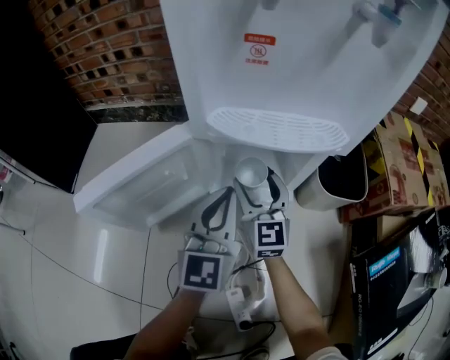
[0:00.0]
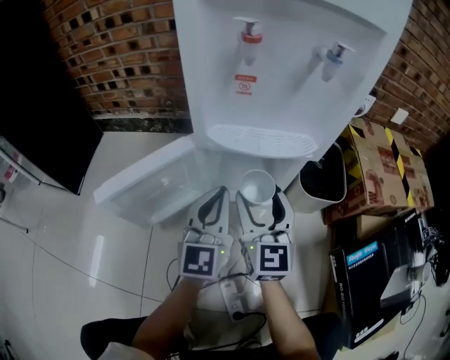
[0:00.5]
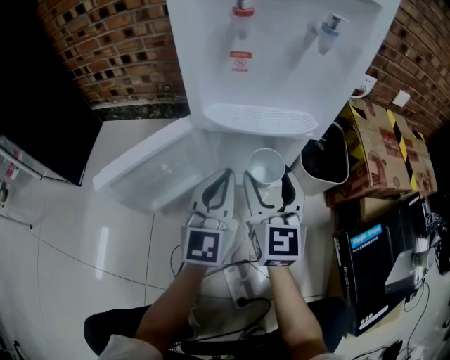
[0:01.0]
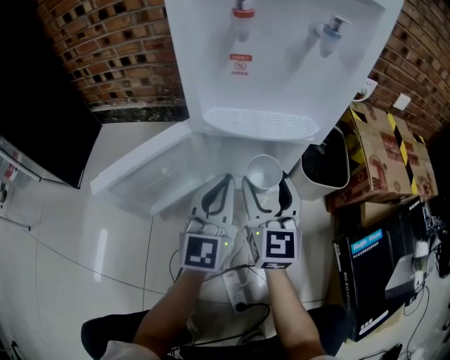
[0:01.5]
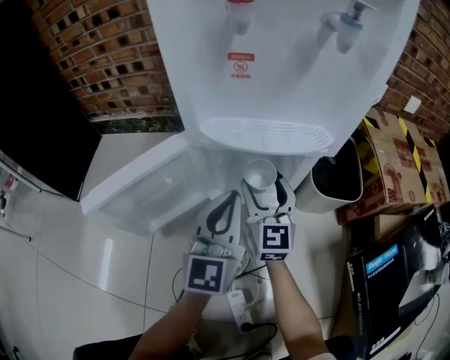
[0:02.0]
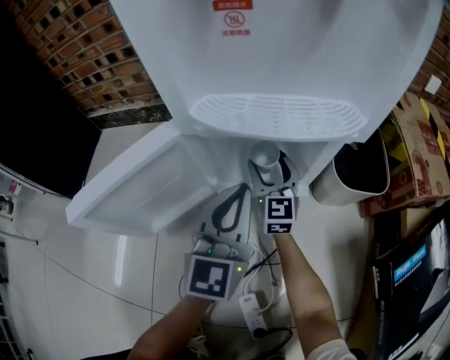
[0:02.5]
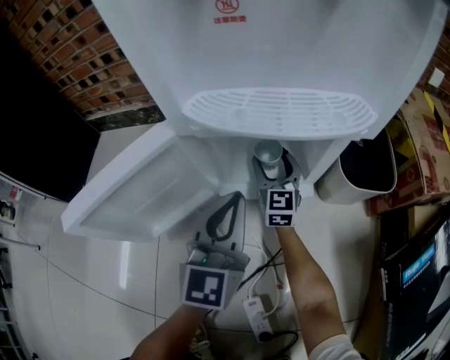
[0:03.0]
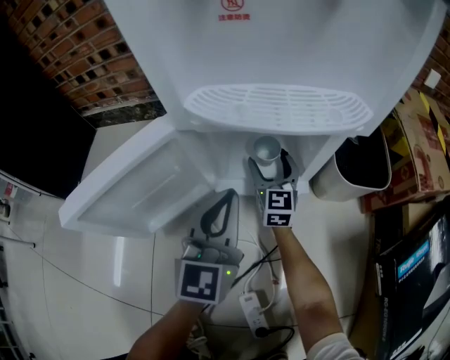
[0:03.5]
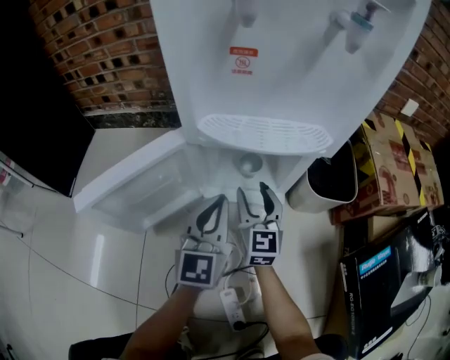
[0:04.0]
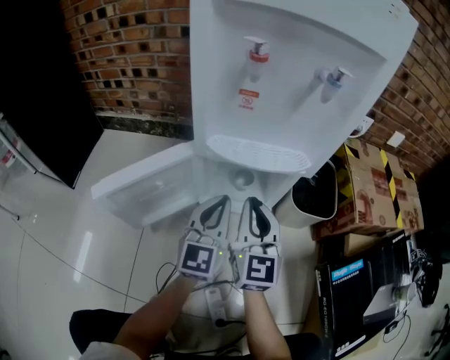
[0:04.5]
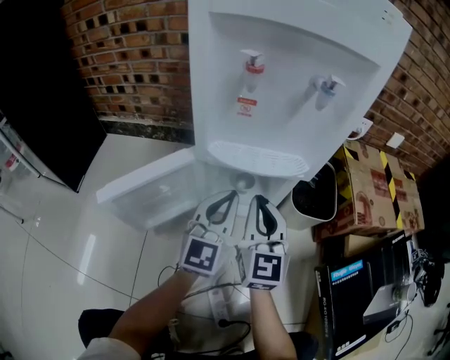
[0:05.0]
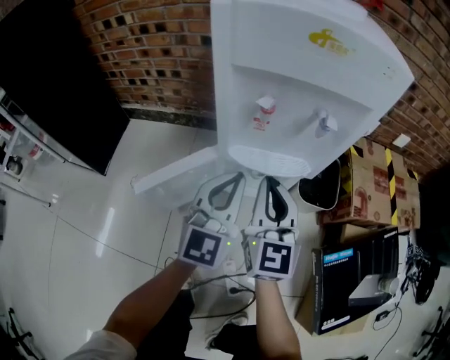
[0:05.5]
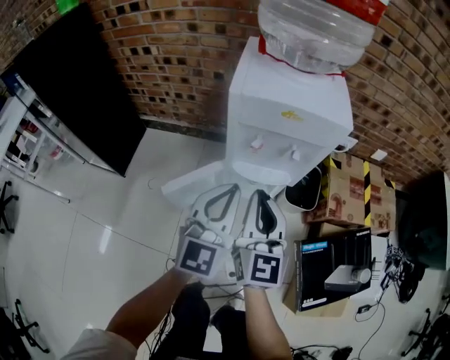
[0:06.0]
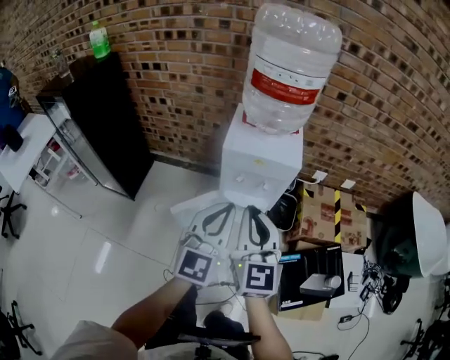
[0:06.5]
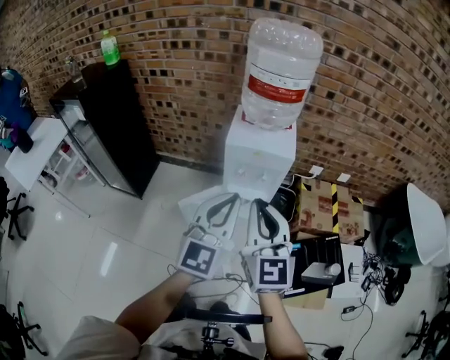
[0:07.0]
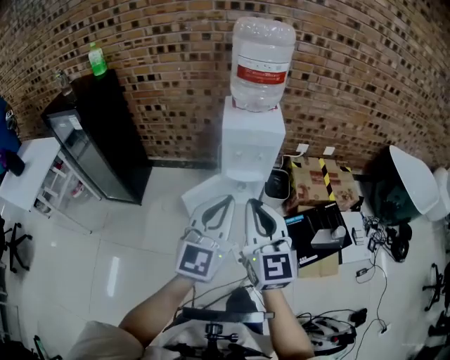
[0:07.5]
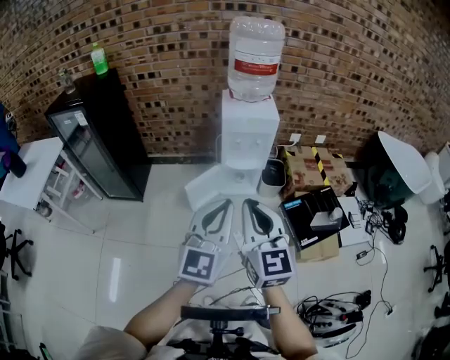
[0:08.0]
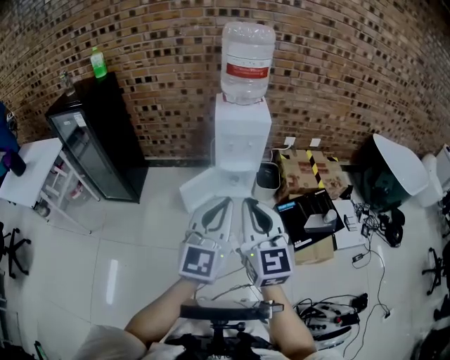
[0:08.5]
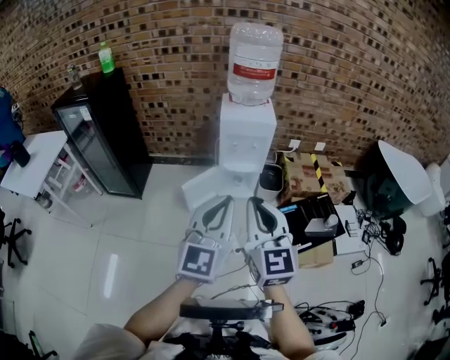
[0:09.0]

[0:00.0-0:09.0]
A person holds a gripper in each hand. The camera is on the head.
0.0 to 2.0 s: The right gripper travels upward and back again, approximately 10 cm each way.
2.0 to 4.5 s: The left gripper moves approximately 5 cm downward and comes back. The right gripper travels upward and backward by some 10 cm, and closes up.
4.5 to 7.0 s: The grippers both shift upward by approximately 70 cm.
7.0 to 9.0 s: Both grippers move backward, about 25 cm.

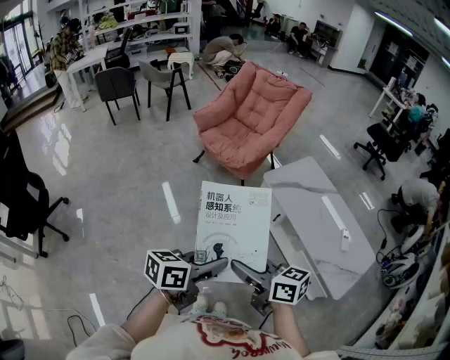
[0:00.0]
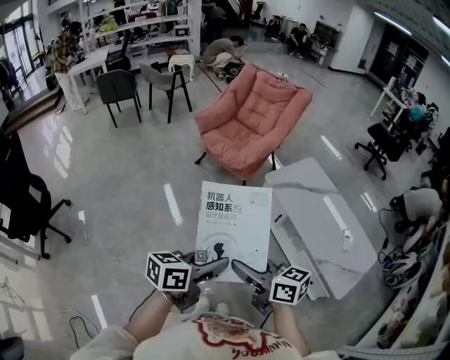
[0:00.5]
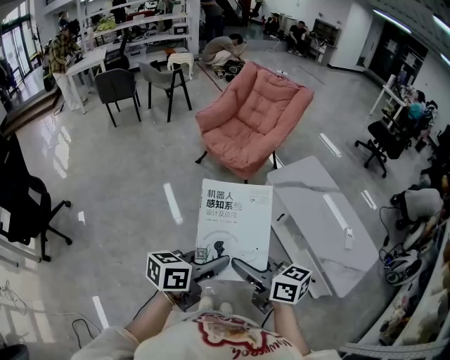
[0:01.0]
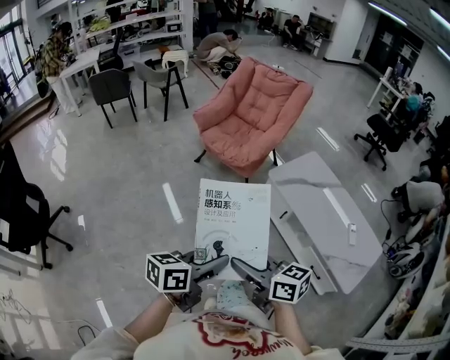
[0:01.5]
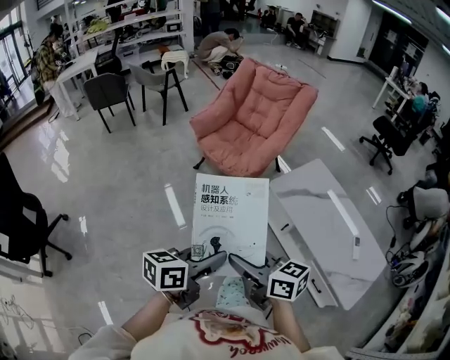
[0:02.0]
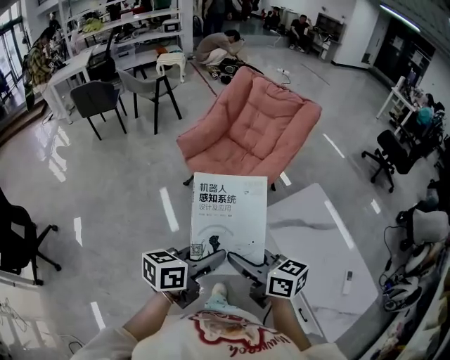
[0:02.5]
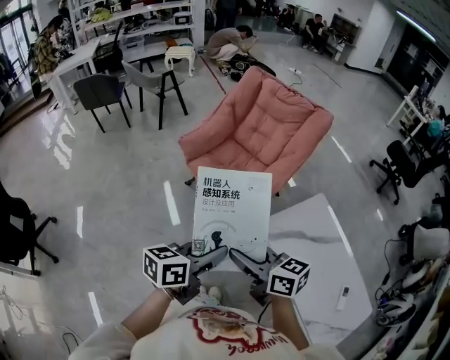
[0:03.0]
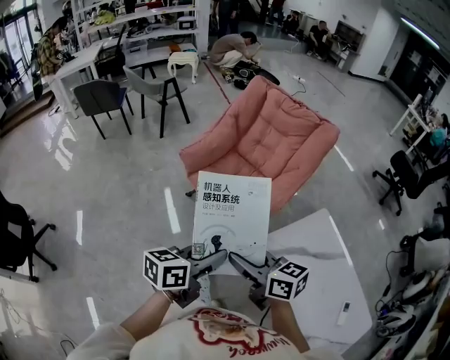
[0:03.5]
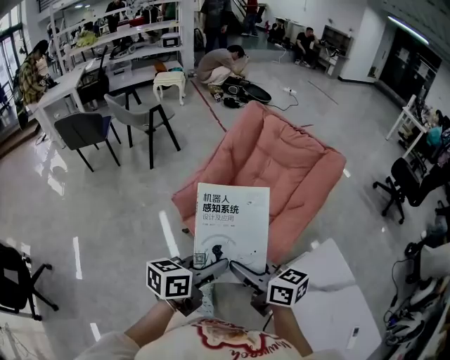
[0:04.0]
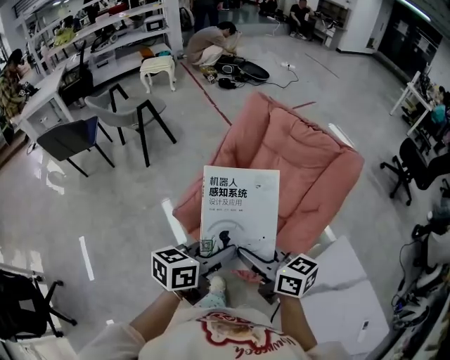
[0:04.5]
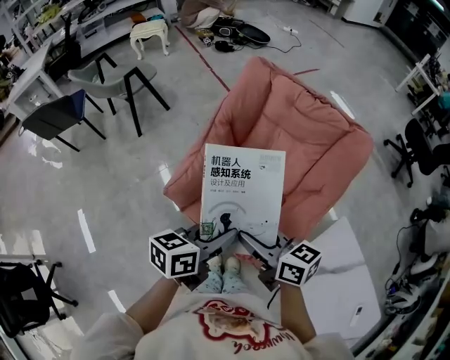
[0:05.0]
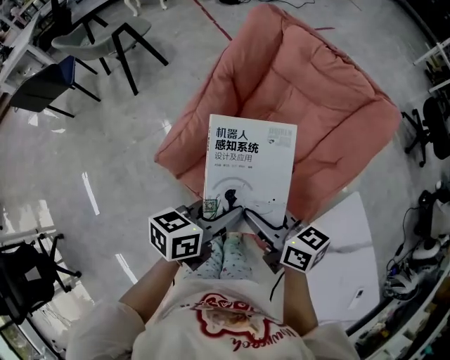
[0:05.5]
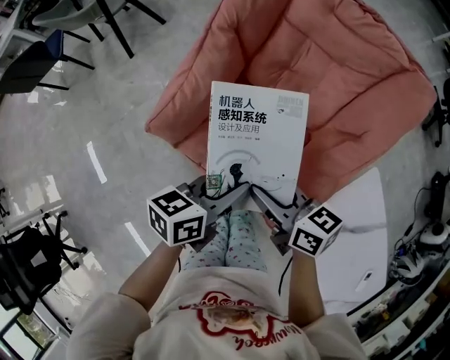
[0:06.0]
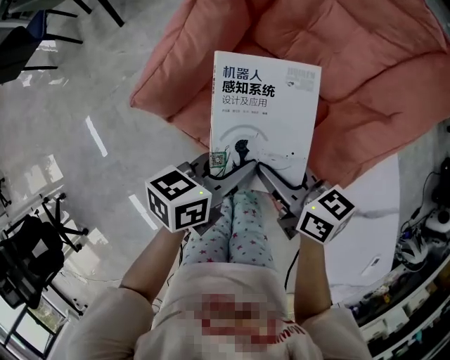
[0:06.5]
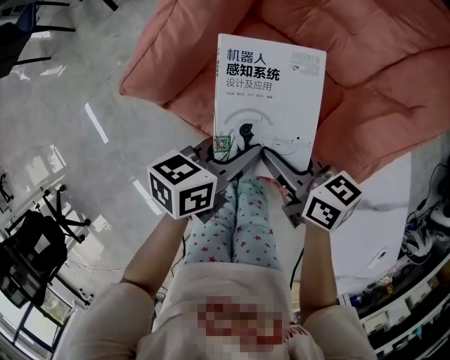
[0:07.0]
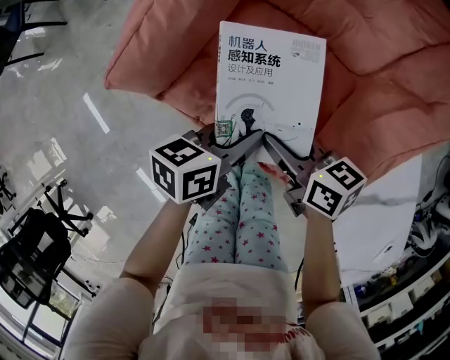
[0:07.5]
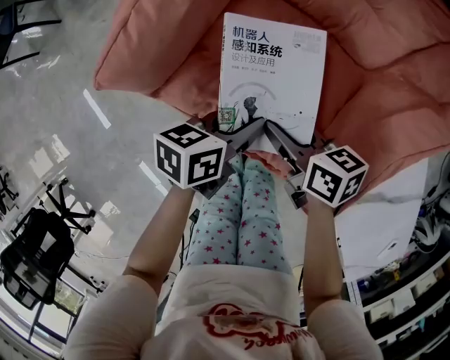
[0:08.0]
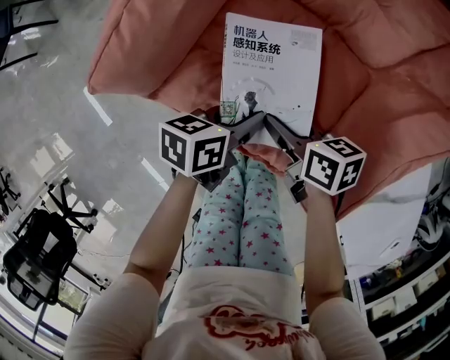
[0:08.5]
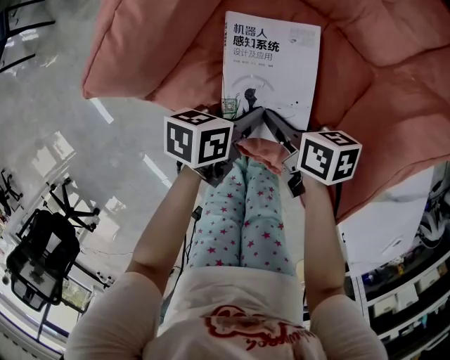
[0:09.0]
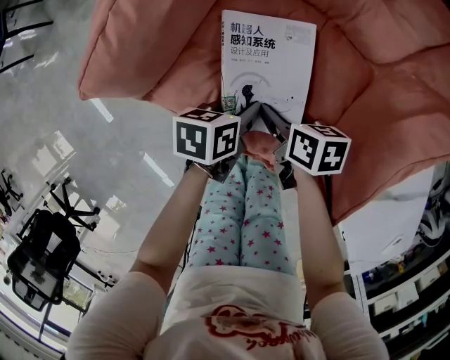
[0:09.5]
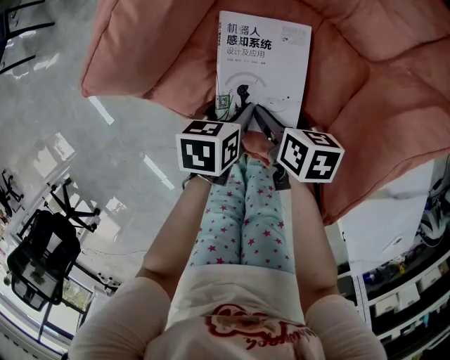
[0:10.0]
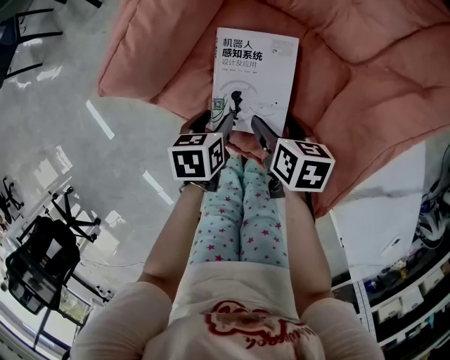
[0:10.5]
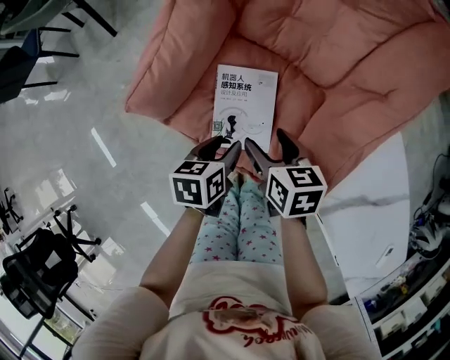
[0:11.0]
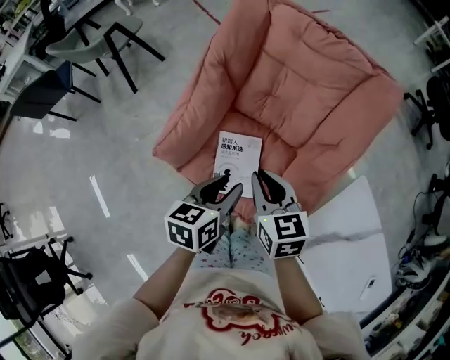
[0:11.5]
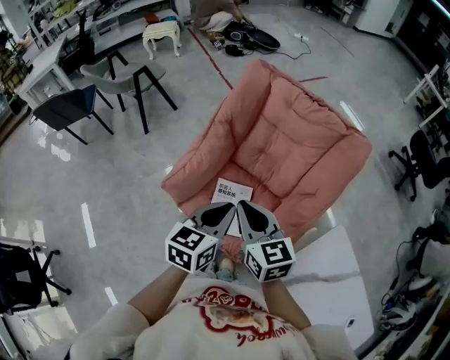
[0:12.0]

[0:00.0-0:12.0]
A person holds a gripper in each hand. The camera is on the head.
0.0 to 2.0 s: The grippers both shift forward by approximately 15 cm.
2.0 to 4.0 s: The two grippers travel together, forward, approximately 50 cm.
4.0 to 6.0 s: Both grippers travel together forward and downward, approximately 25 cm.
6.0 to 8.0 s: The two grippers go approximately 20 cm downward.
8.0 to 10.0 s: The grippers both shift downward by approximately 10 cm. The right gripper changes its angle by some 20 degrees, and opens. The left gripper turns by some 30 degrees, and opens its fingers.
10.0 to 12.0 s: Both grippers travel together upward, about 50 cm. The left gripper tilts its fingers some 30 degrees upward, and closes its fingers; the right gripper tilts its fingers approximately 30 degrees upward, and closes up.

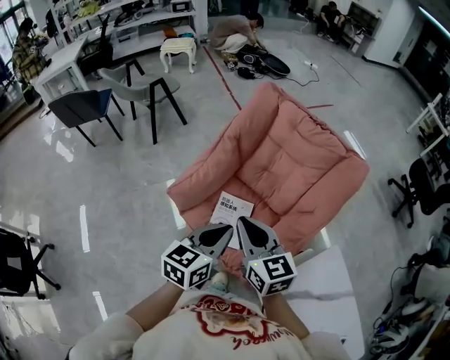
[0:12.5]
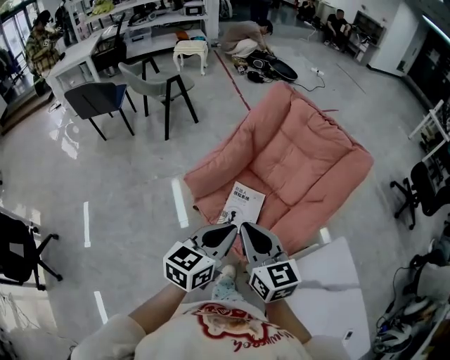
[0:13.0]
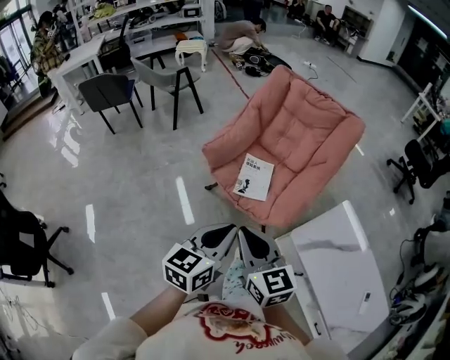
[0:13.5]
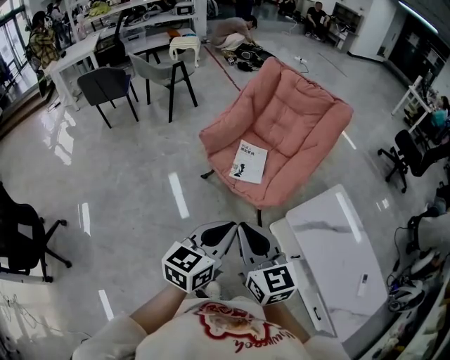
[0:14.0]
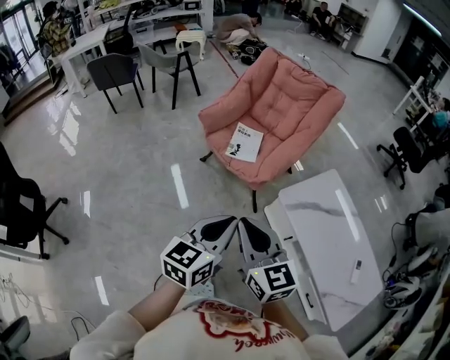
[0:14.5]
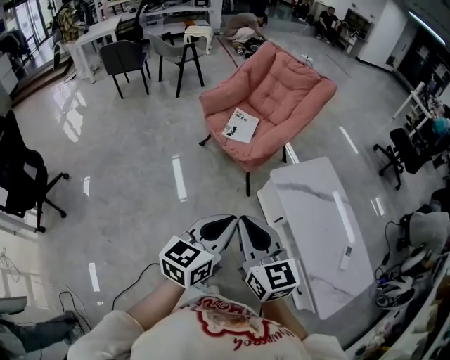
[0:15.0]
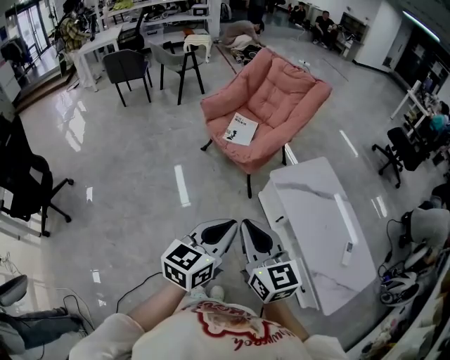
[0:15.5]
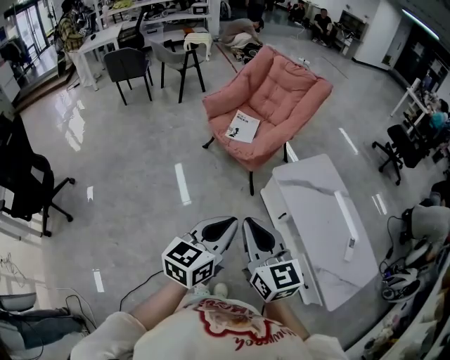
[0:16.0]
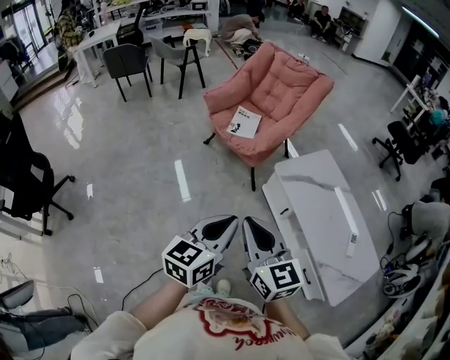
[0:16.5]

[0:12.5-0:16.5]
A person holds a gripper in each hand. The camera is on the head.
12.5 to 14.5 s: Both grippers are carried backward, roughly 50 cm.
14.5 to 16.5 s: The grippers both shift backward by approximately 20 cm.

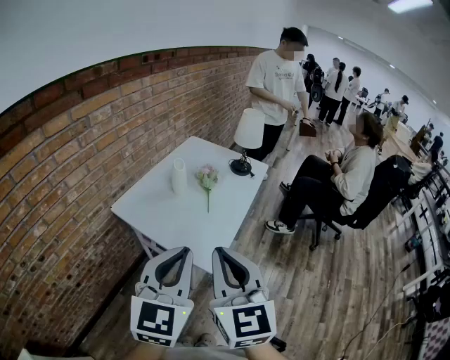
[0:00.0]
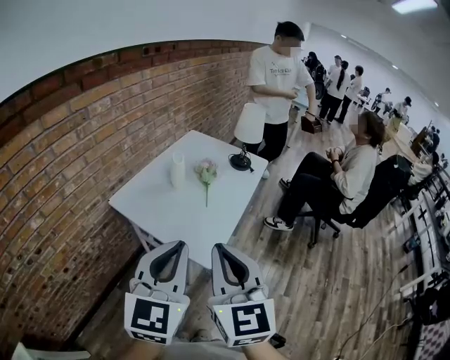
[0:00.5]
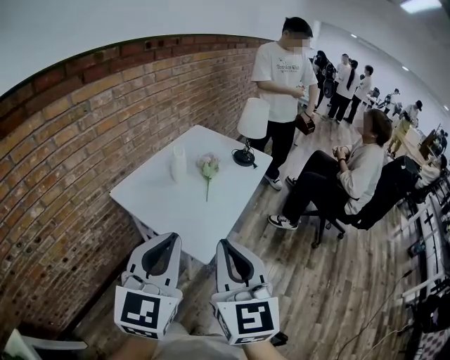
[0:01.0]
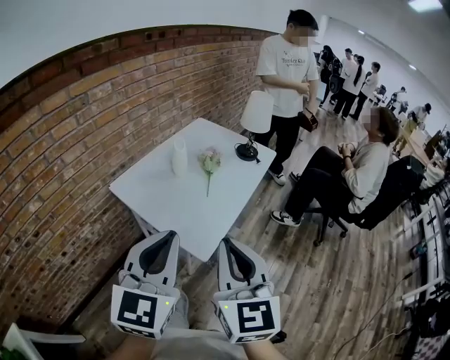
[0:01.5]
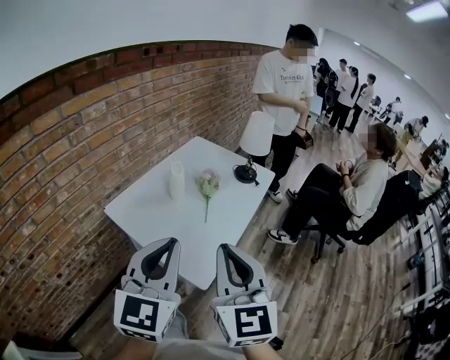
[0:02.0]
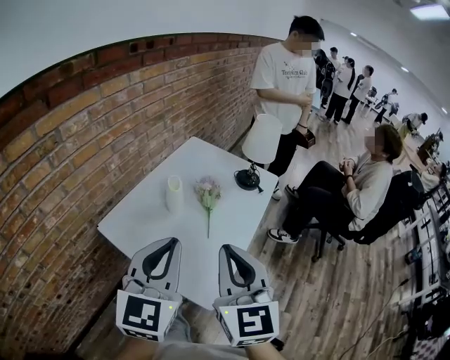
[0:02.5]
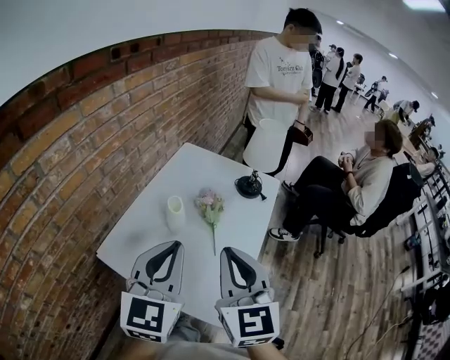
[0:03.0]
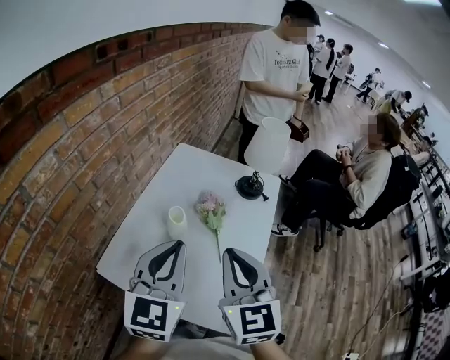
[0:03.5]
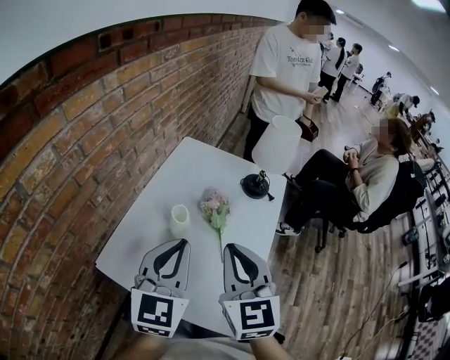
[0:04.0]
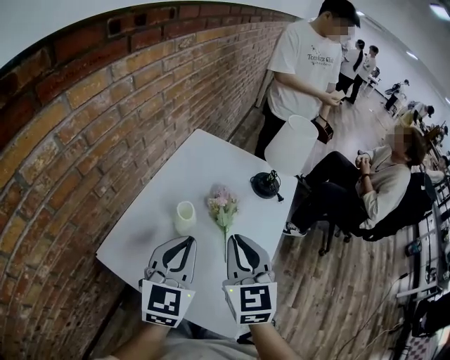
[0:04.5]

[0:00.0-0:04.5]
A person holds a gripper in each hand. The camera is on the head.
0.0 to 2.0 s: The two grippers go roughly 10 cm forward.
2.0 to 4.5 s: The two grippers go some 30 cm forward.
